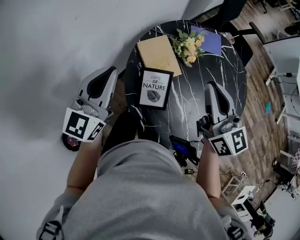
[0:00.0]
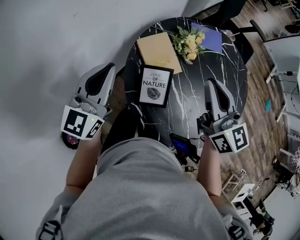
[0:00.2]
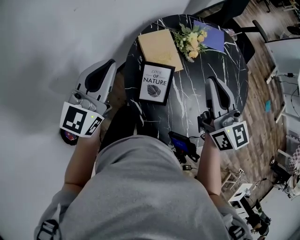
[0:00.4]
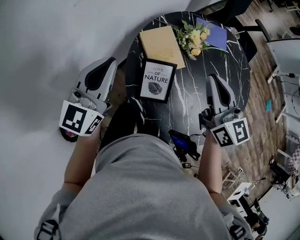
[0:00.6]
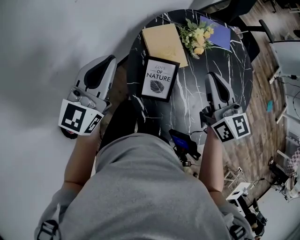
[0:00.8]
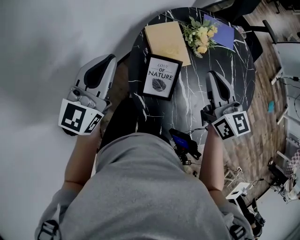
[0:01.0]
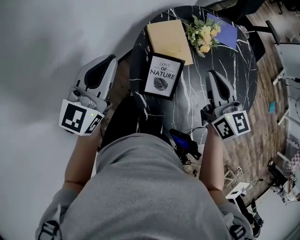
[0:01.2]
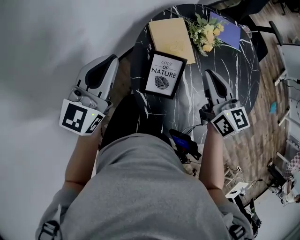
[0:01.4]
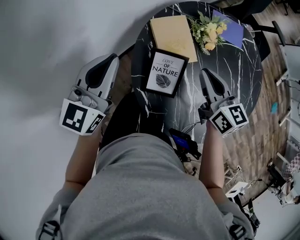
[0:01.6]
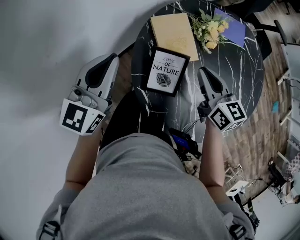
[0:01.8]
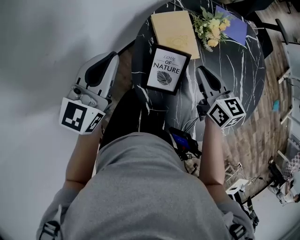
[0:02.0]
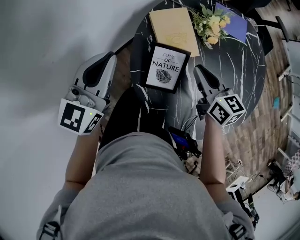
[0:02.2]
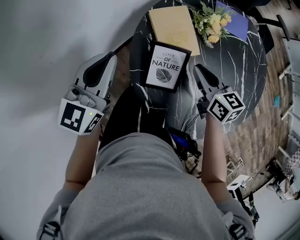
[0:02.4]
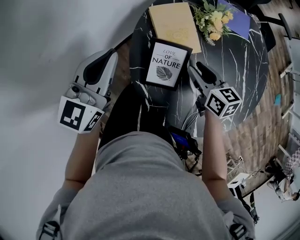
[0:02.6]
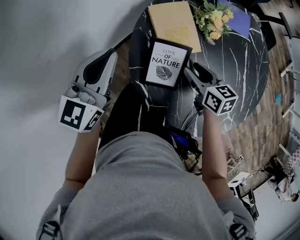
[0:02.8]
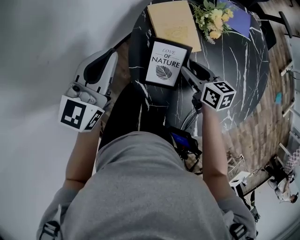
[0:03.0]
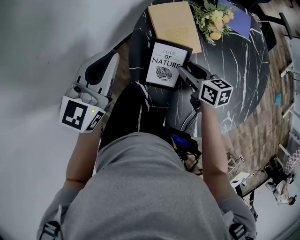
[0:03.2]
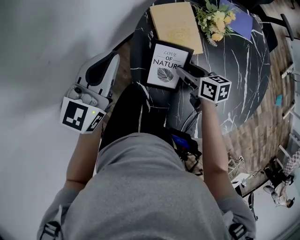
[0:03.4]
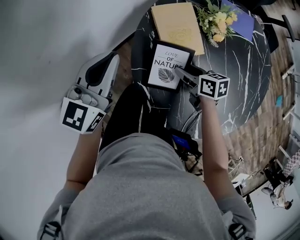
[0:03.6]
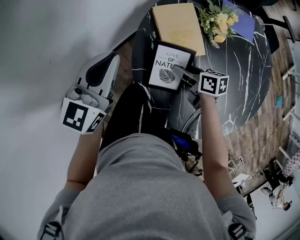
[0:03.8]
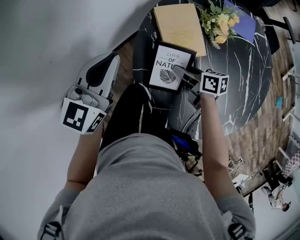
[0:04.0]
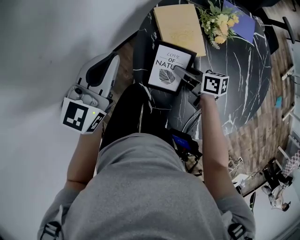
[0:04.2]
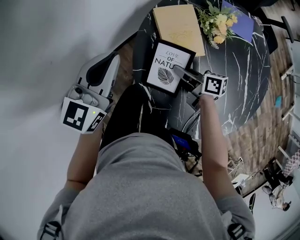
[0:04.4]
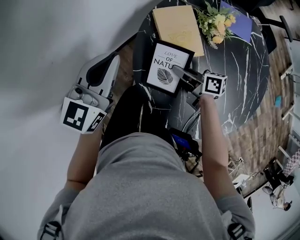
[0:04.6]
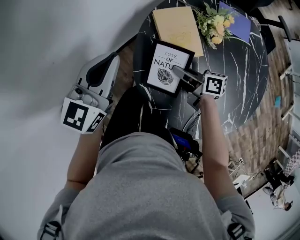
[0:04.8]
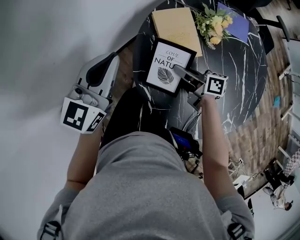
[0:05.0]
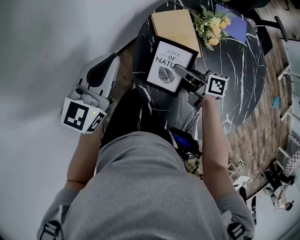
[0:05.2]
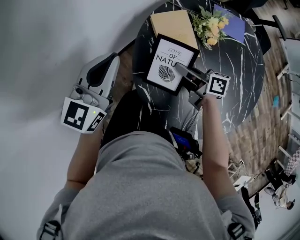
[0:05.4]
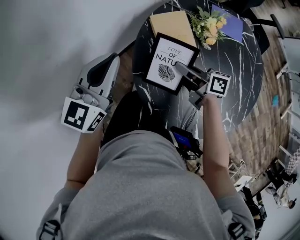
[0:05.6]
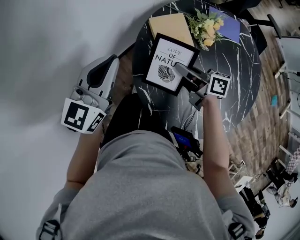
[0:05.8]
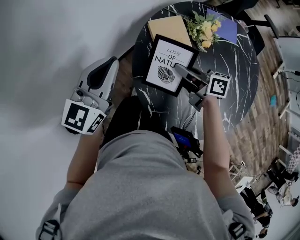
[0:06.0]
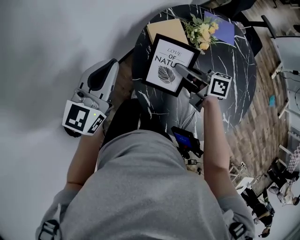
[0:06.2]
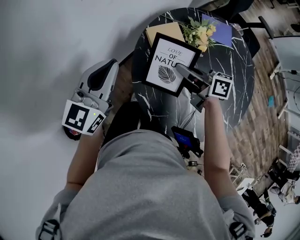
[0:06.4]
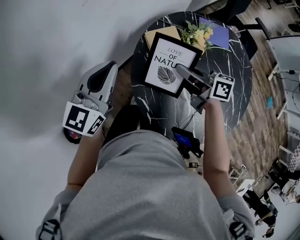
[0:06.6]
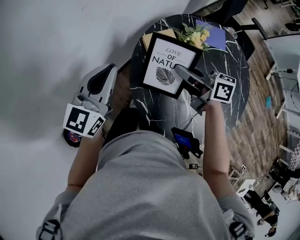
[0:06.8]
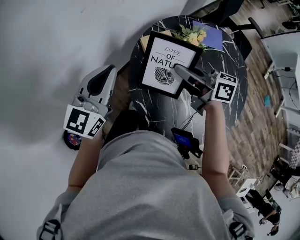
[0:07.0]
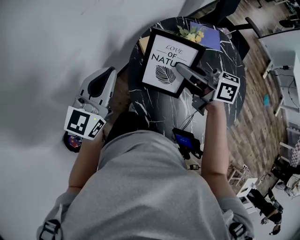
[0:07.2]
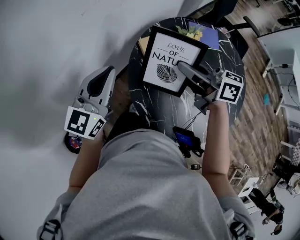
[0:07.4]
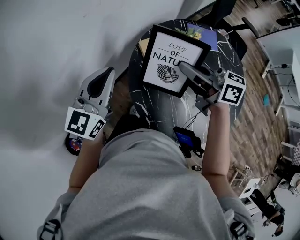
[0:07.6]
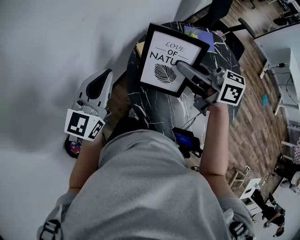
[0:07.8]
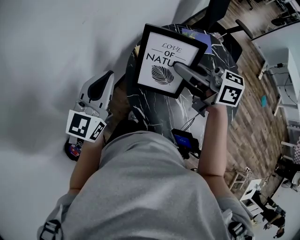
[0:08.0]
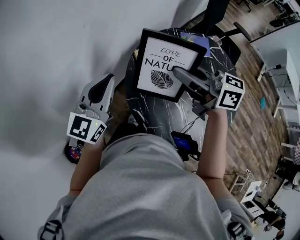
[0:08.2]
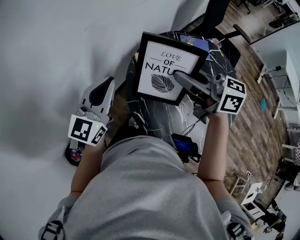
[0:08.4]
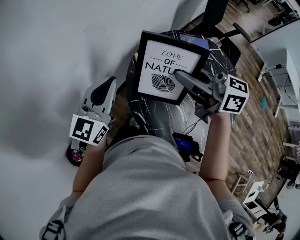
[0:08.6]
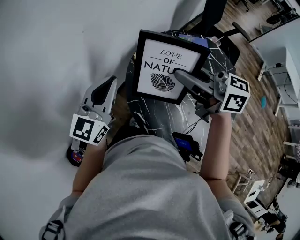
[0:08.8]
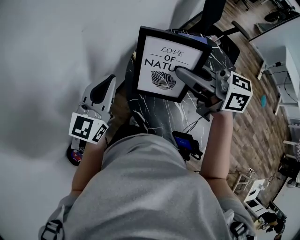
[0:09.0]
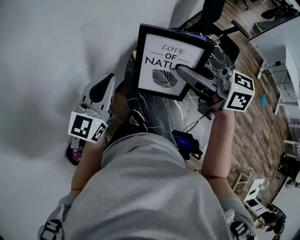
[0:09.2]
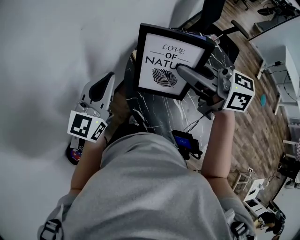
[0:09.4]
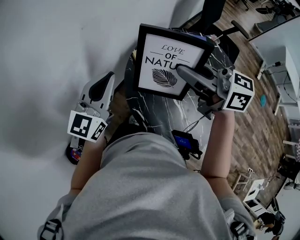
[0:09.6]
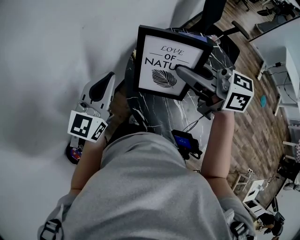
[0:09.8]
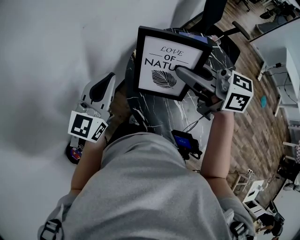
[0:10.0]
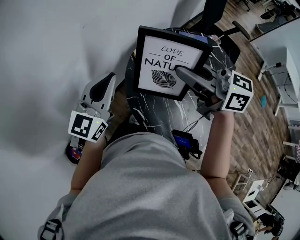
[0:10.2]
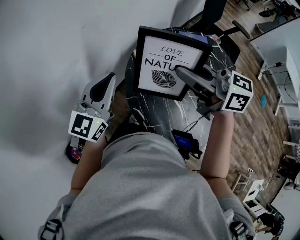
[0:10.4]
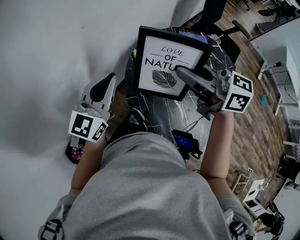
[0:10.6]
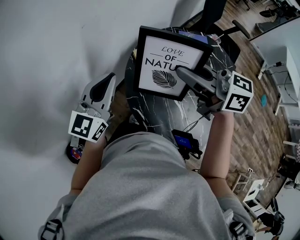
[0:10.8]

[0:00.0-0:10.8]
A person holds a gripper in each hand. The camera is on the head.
0:00.0 to 0:01.6: The right gripper heads downward, covering some 15 cm, and changes its angle by about 20 degrees; the left gripper goes some 5 cm downward.
0:01.6 to 0:03.0: The right gripper travels downward by approximately 15 cm, swivels about 20 degrees, and opens.
0:03.0 to 0:04.6: The right gripper travels to the left by some 5 cm, swivels about 30 degrees, and closes its fingers.
0:04.6 to 0:06.2: The right gripper shifts approximately 10 cm upward.
0:06.2 to 0:07.8: The right gripper is displaced upward by about 20 cm, and turns by approximately 20 degrees.
0:07.8 to 0:09.2: The right gripper heads upward, covering about 5 cm.
0:09.2 to 0:10.8: Both grippers stay put.

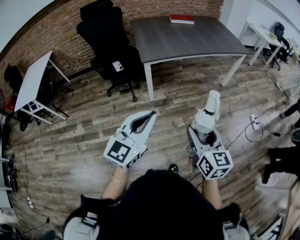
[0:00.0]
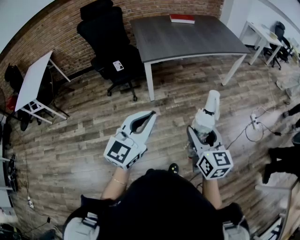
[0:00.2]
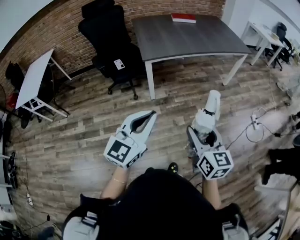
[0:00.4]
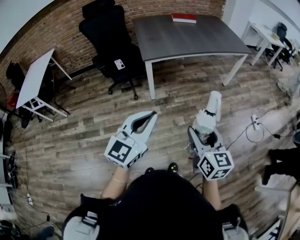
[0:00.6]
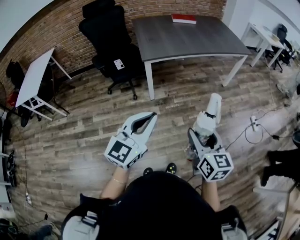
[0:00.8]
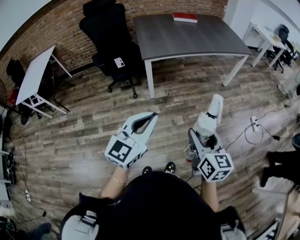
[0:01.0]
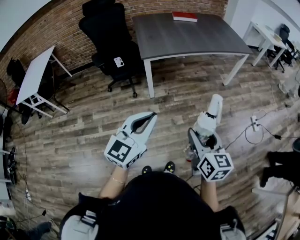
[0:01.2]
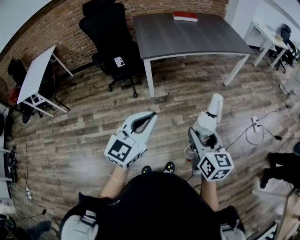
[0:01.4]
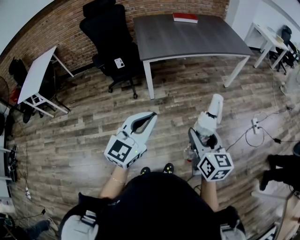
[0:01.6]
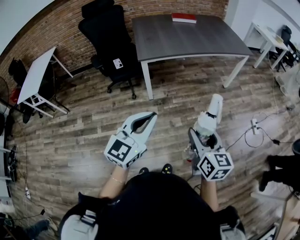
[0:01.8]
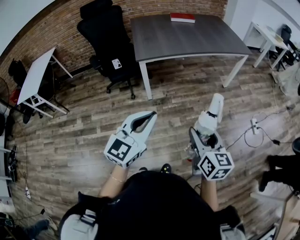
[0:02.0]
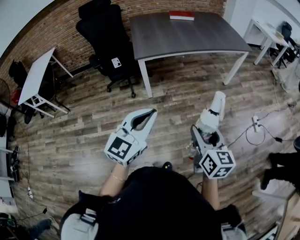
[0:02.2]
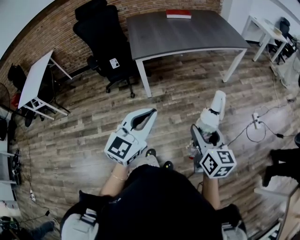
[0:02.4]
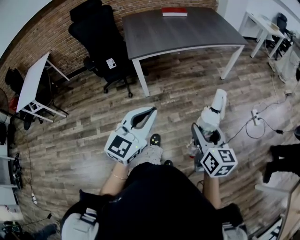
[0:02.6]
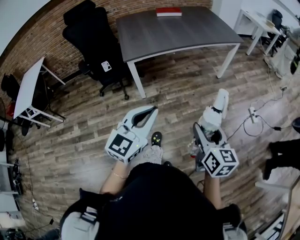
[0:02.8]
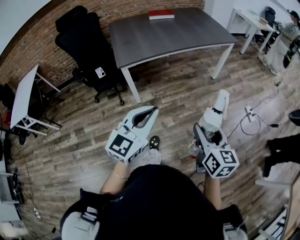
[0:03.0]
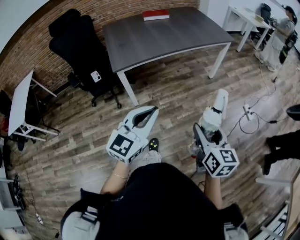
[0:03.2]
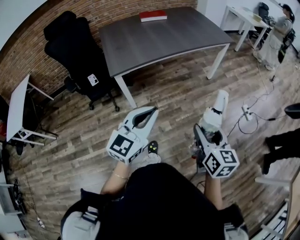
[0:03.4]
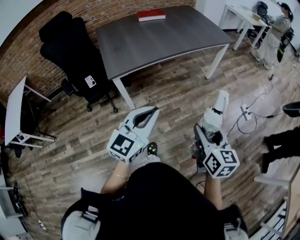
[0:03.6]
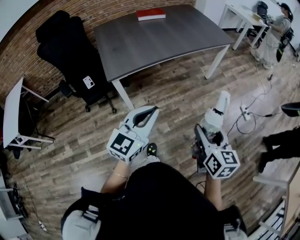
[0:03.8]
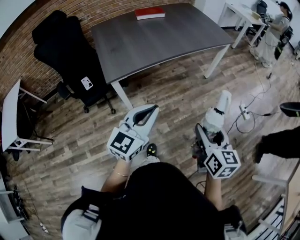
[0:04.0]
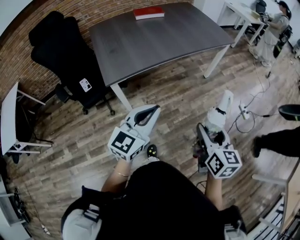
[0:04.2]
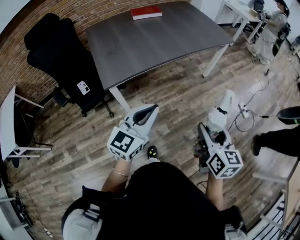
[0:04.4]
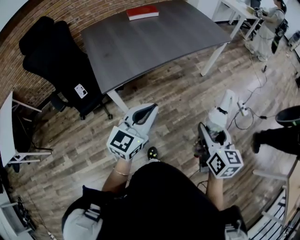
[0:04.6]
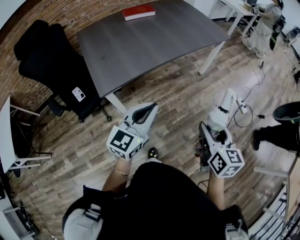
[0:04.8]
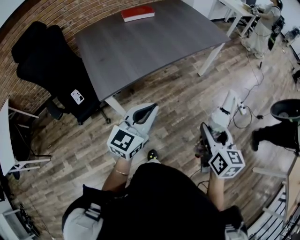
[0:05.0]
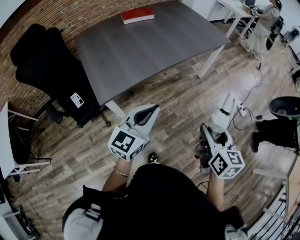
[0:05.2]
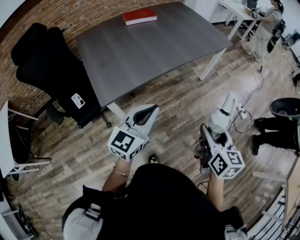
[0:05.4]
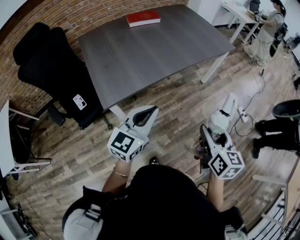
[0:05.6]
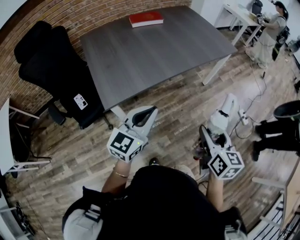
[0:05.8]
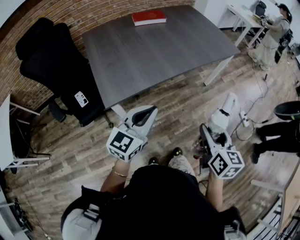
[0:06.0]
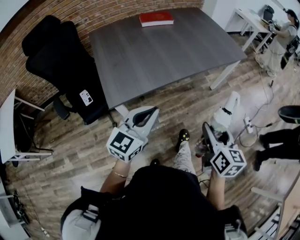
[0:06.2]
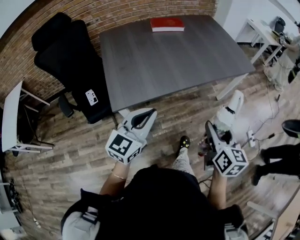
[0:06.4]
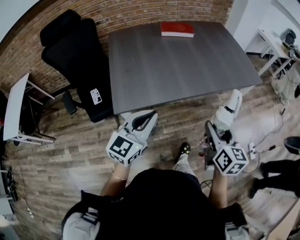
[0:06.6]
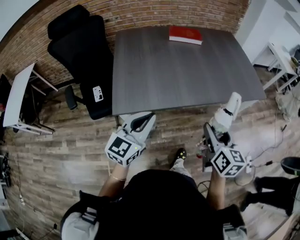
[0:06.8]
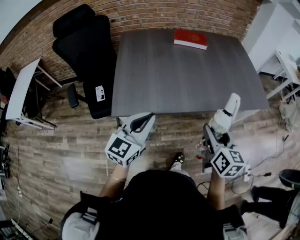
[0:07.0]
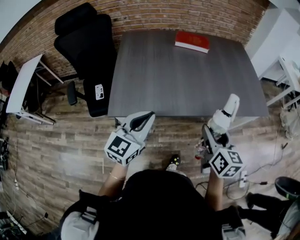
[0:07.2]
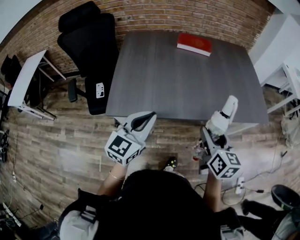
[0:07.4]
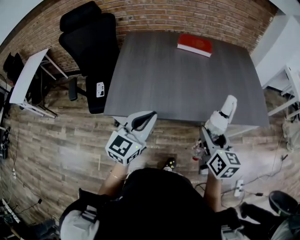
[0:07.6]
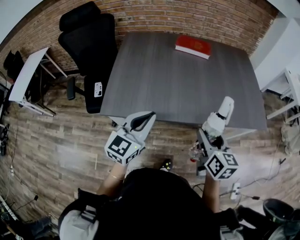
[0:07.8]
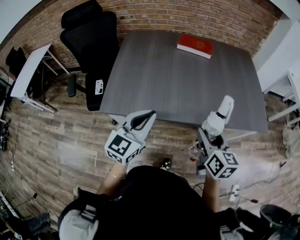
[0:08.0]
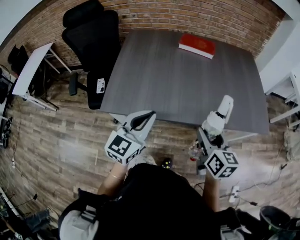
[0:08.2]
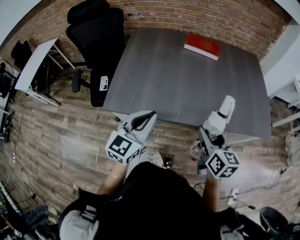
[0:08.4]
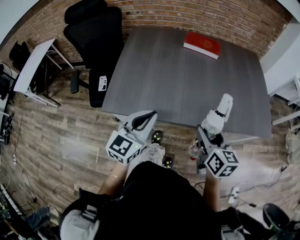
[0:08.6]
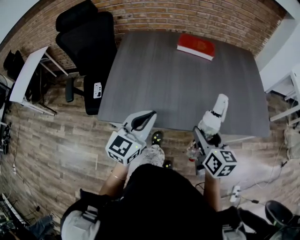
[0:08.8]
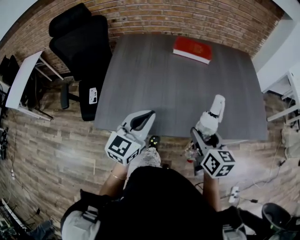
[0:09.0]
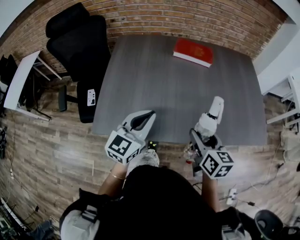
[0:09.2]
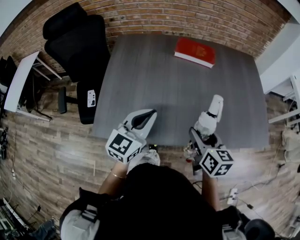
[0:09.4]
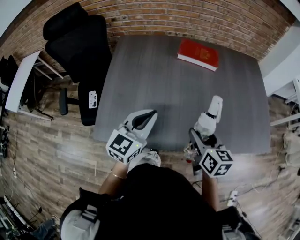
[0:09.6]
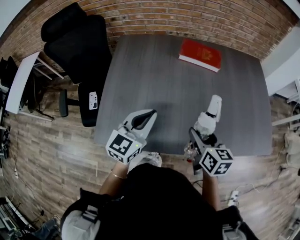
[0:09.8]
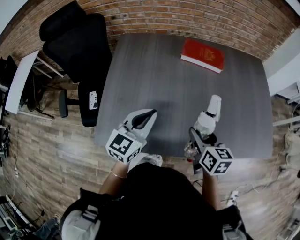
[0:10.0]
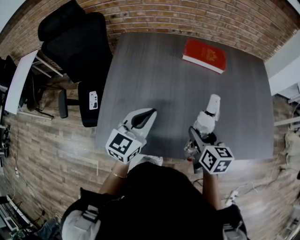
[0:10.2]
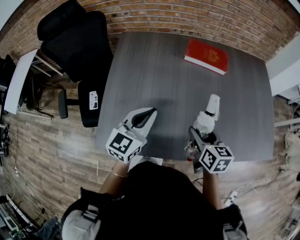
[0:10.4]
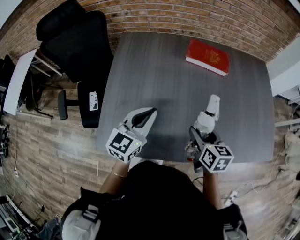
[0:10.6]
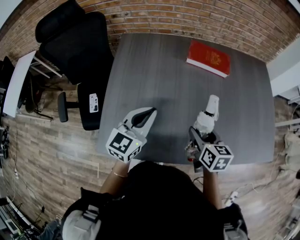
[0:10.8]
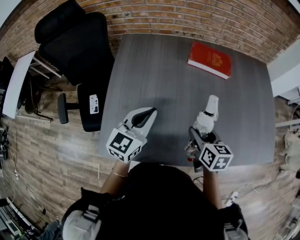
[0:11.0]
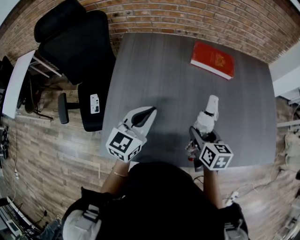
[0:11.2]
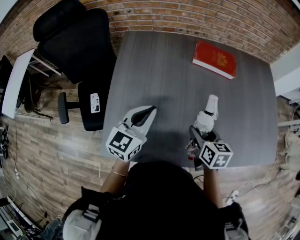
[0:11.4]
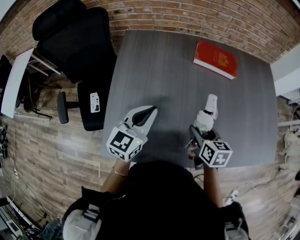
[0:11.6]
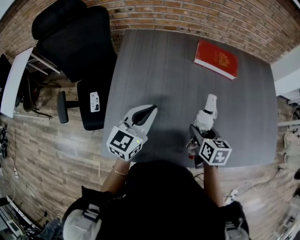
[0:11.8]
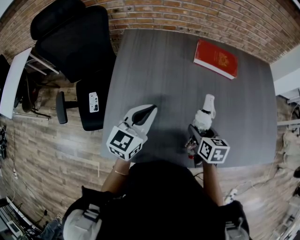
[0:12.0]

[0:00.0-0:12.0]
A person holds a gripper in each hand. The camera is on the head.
0:00.0 to 0:01.6: The grippers both shift to the right by about 5 cm.
0:01.6 to 0:03.0: The left gripper heads forward and to the right, covering roughly 15 cm. The right gripper moves to the right and forward, roughly 10 cm.
0:03.0 to 0:04.4: The right gripper goes roughly 20 cm forward, while the left gripper shifts about 25 cm forward and to the left.
0:04.4 to 0:06.0: The two grippers go about 15 cm forward and to the left.
0:06.0 to 0:07.6: The right gripper changes place by some 30 cm, and changes its angle by roughly 30 degrees. Meanwhile the left gripper shifts by some 20 cm, and changes its angle by roughly 30 degrees.
0:07.6 to 0:09.0: Both grippers move forward, approximately 10 cm.
0:09.0 to 0:10.4: The left gripper moves forward, about 15 cm, while the right gripper moves forward, to the left and downward, approximately 20 cm.
0:10.4 to 0:12.0: The left gripper travels to the left and forward by approximately 10 cm, while the right gripper shifts about 10 cm downward and to the left.

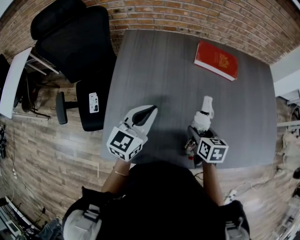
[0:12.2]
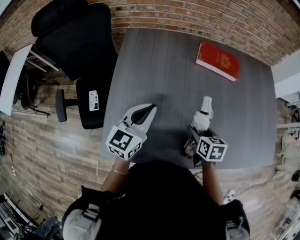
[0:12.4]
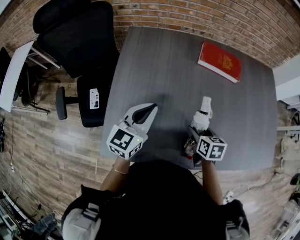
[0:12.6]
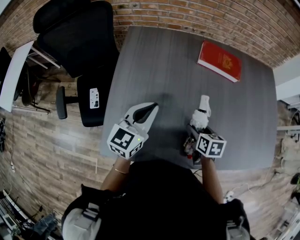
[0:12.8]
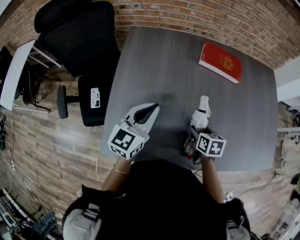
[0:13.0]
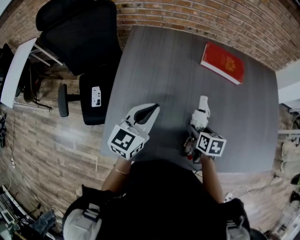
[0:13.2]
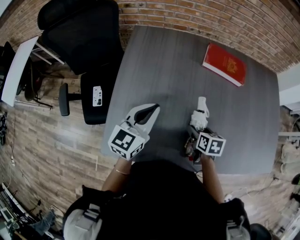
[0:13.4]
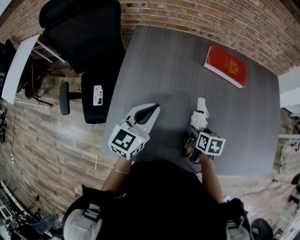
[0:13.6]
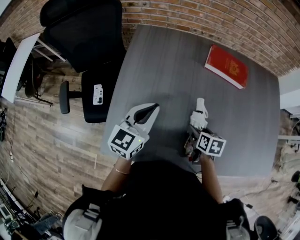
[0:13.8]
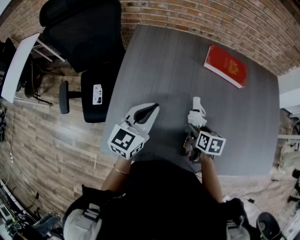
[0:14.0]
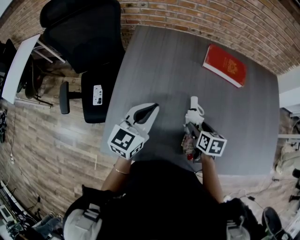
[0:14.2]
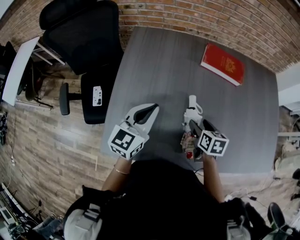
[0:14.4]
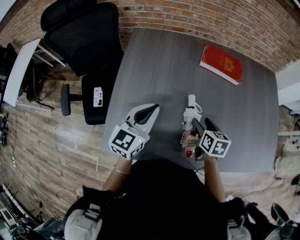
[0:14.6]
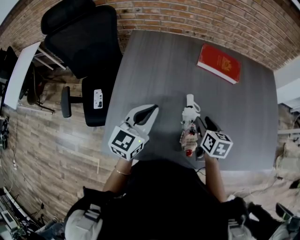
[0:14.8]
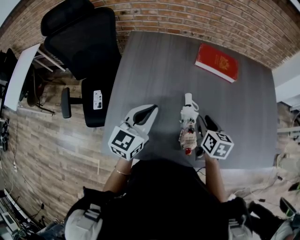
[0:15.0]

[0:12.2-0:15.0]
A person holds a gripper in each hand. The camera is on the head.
0:12.2 to 0:13.6: The right gripper travels downward by roughly 5 cm.
0:13.6 to 0:15.0: The right gripper shifts about 10 cm upward, and closes its fingers.
